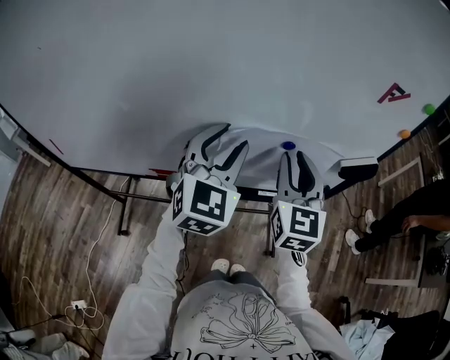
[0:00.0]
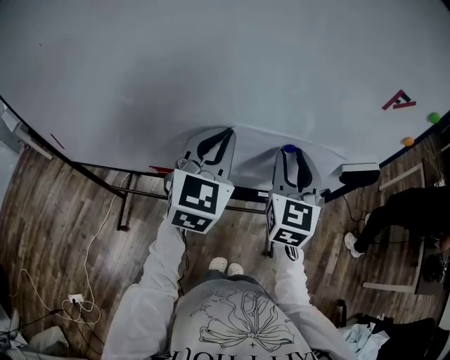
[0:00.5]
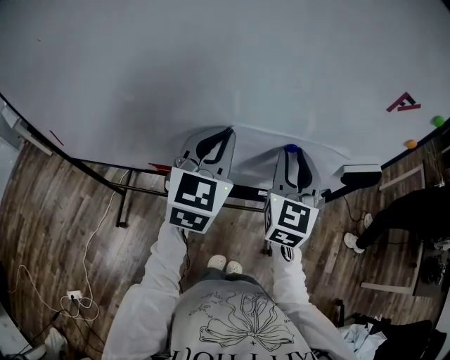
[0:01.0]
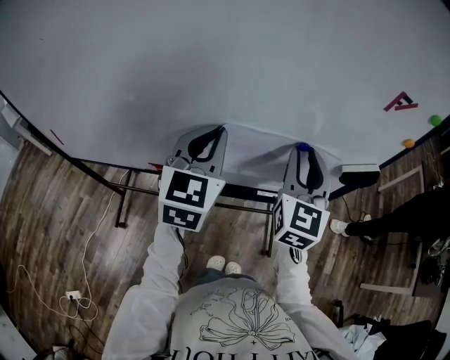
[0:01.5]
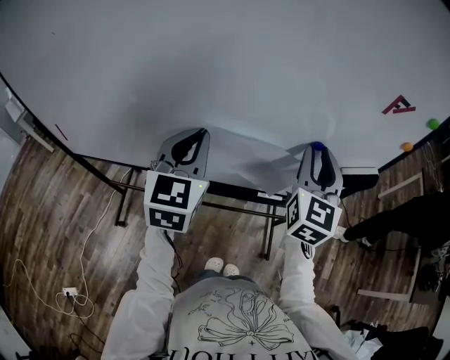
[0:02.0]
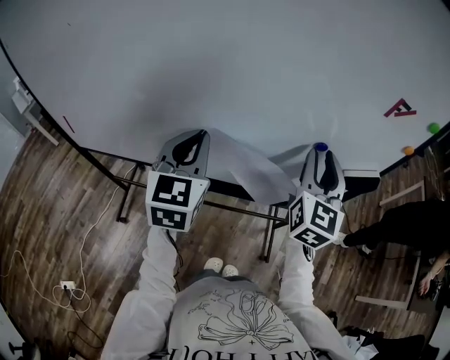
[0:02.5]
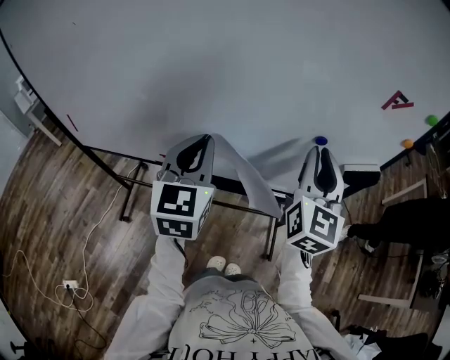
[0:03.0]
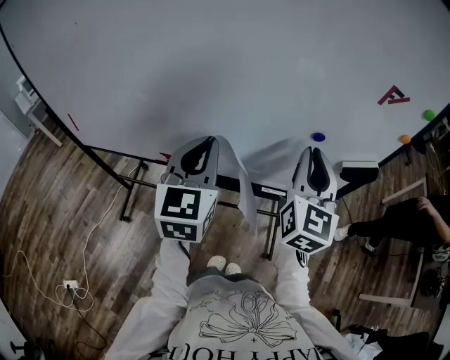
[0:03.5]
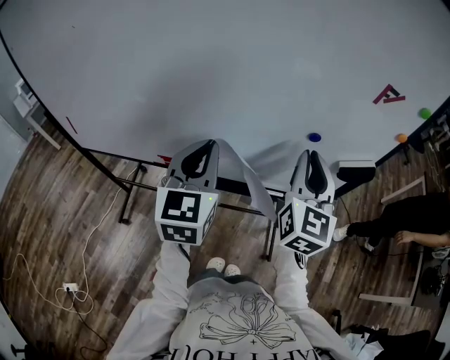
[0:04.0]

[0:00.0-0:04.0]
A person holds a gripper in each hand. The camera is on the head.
0:00.0 to 0:02.0: The right gripper moves some 5 cm; the left gripper heads to the left, covering roughly 5 cm, and closes.
0:02.0 to 0:04.0: The two grippers go about 5 cm backward.

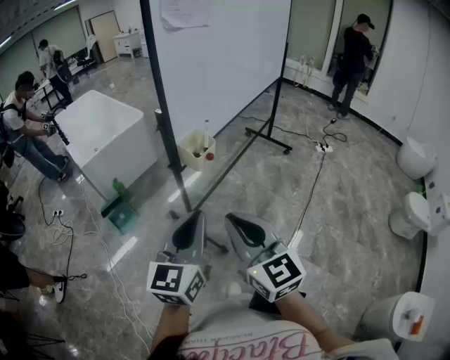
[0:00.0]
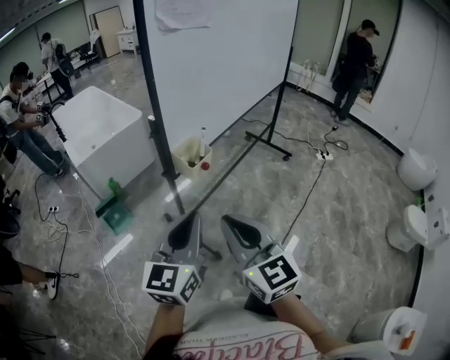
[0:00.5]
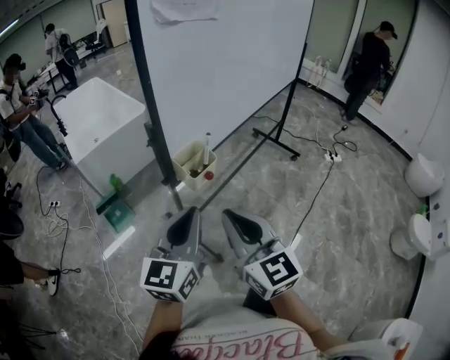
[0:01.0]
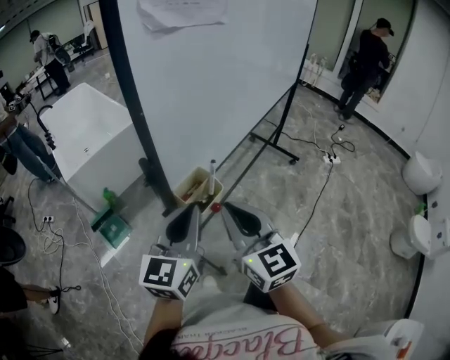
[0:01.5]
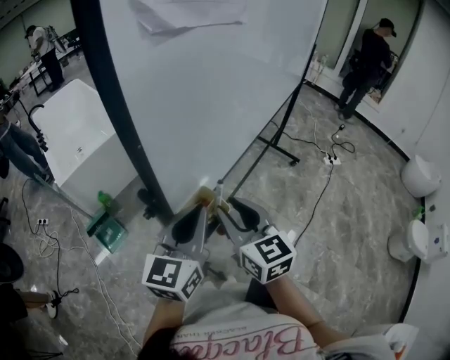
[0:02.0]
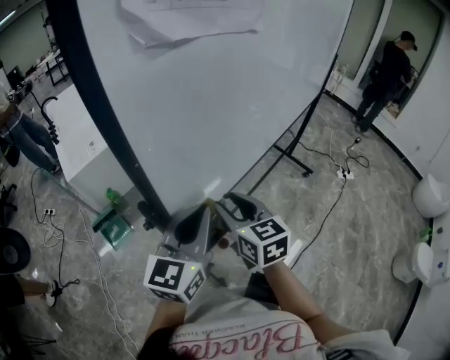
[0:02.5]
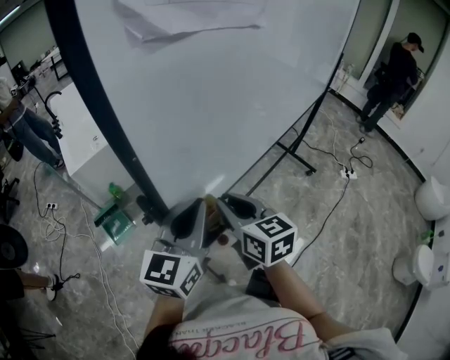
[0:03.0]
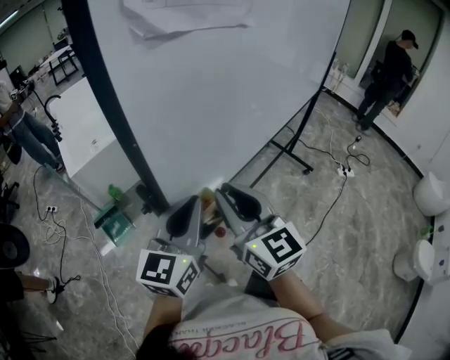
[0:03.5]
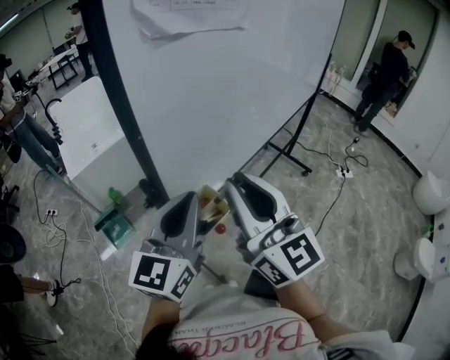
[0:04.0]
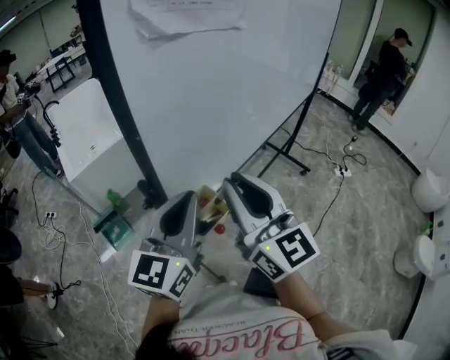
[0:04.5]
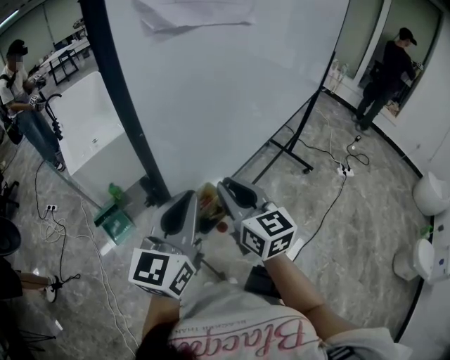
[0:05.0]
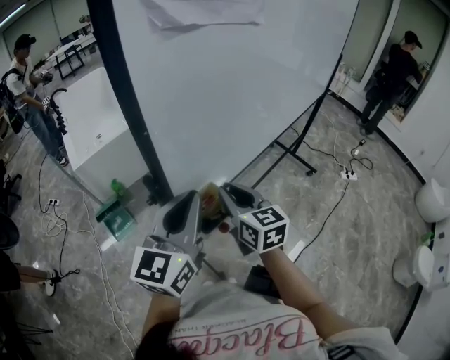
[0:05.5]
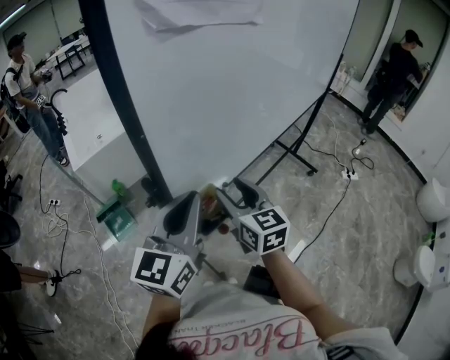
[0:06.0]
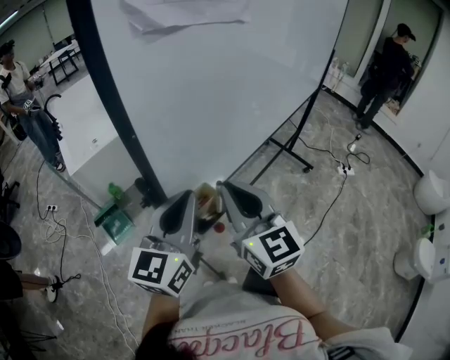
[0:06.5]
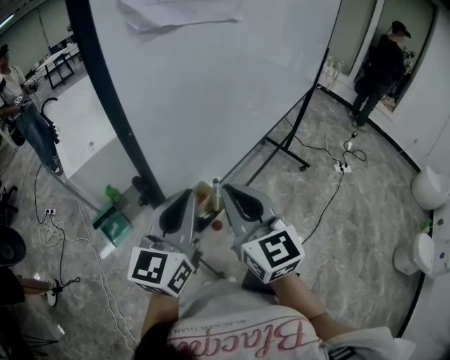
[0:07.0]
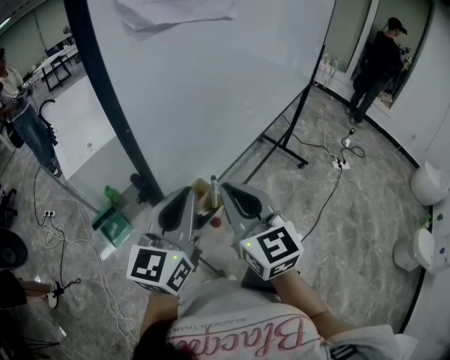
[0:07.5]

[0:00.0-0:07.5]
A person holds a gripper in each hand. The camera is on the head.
0:00.0 to 0:02.0: Both grippers move forward, some 25 cm. The right gripper opens up.
0:02.0 to 0:04.0: The right gripper moves upward, roughly 15 cm, and changes its angle by roughly 30 degrees, while the left gripper heads upward, covering roughly 5 cm.
0:04.0 to 0:05.5: The right gripper shifts some 20 cm downward and forward, and rotates about 30 degrees.
0:05.5 to 0:07.5: The right gripper goes some 10 cm upward and backward, and opens, then closes once more.

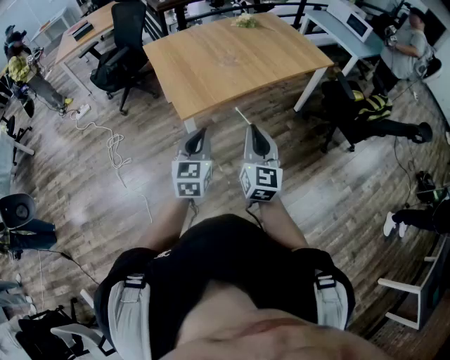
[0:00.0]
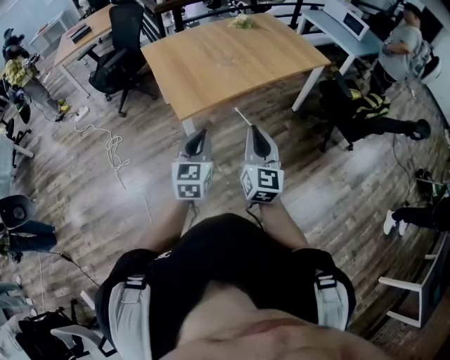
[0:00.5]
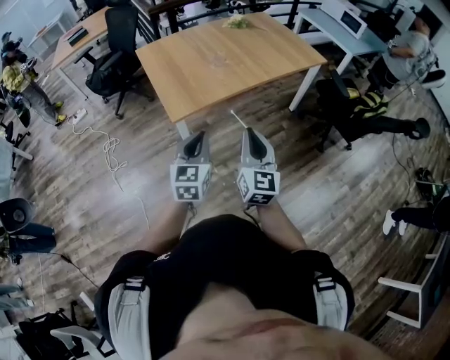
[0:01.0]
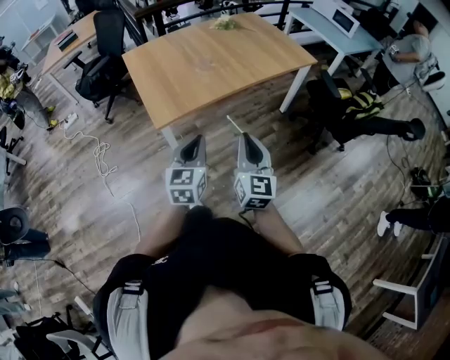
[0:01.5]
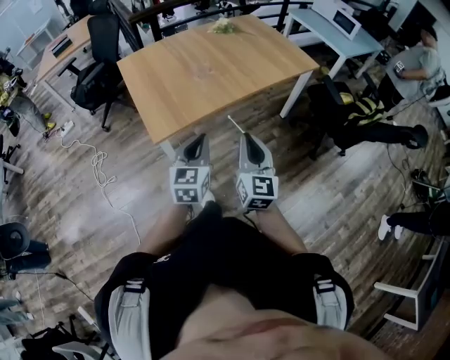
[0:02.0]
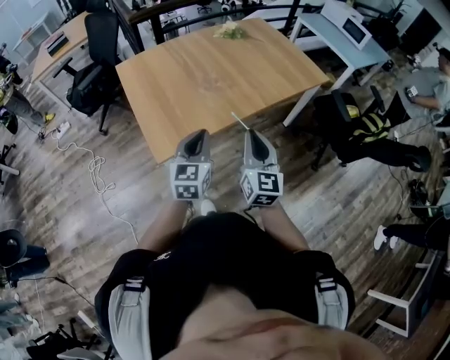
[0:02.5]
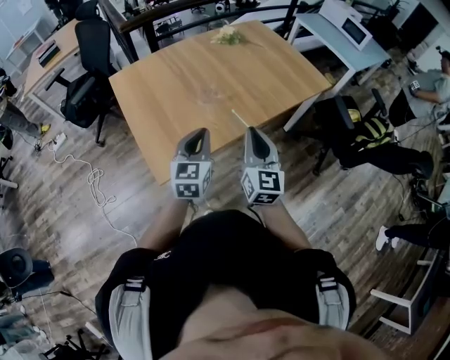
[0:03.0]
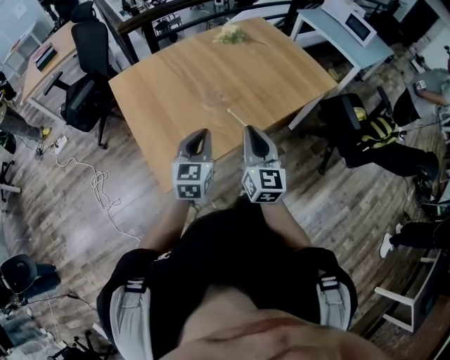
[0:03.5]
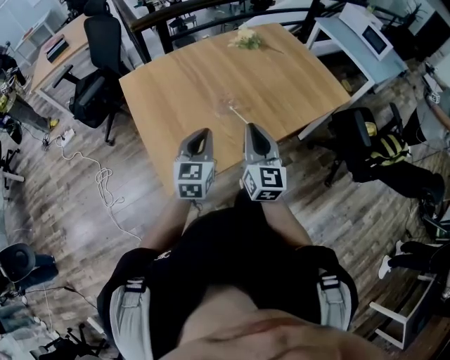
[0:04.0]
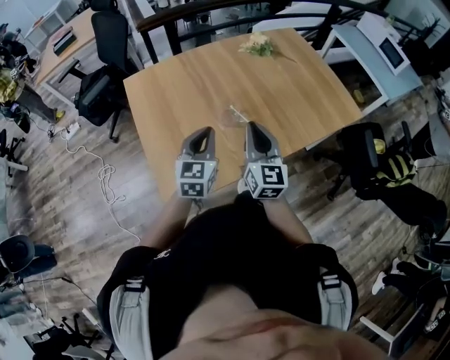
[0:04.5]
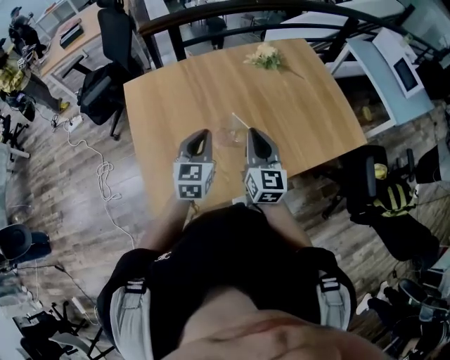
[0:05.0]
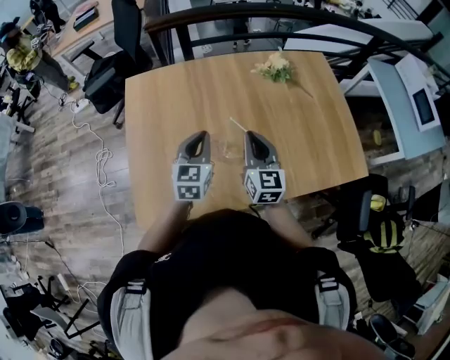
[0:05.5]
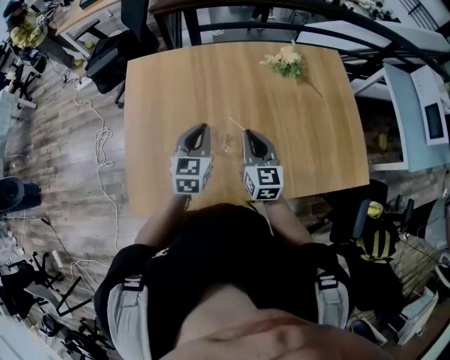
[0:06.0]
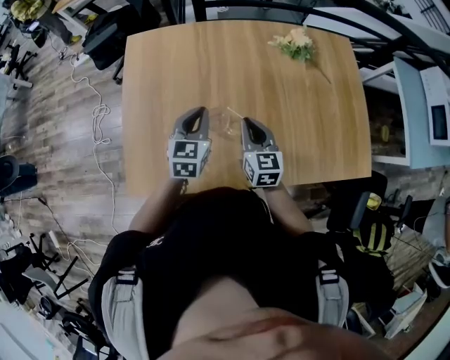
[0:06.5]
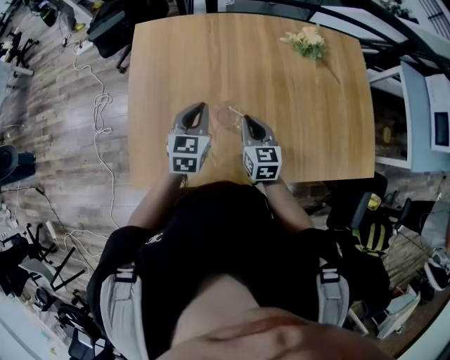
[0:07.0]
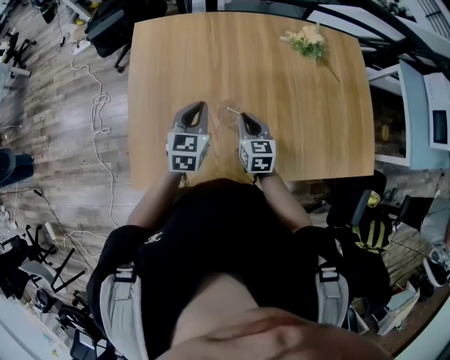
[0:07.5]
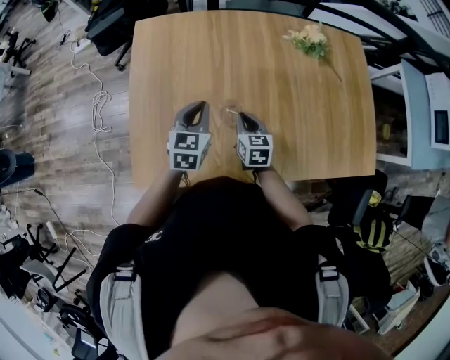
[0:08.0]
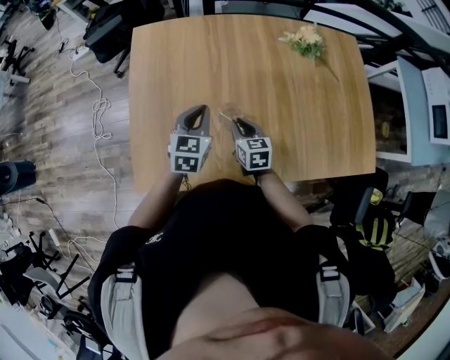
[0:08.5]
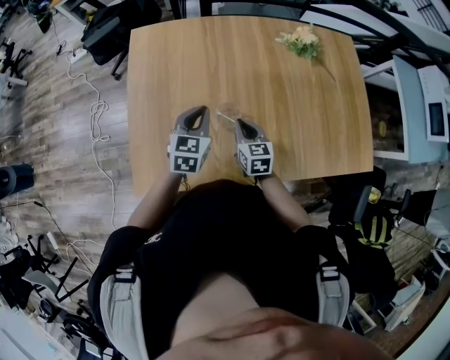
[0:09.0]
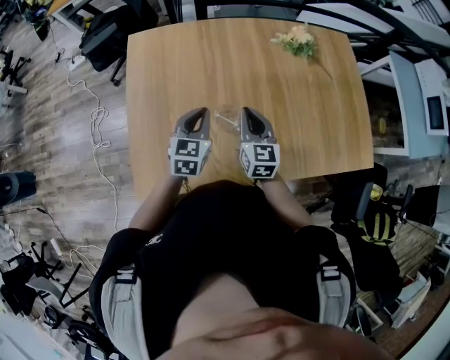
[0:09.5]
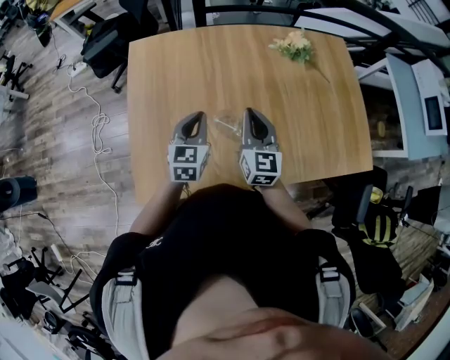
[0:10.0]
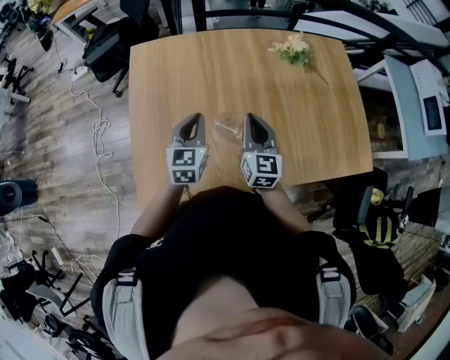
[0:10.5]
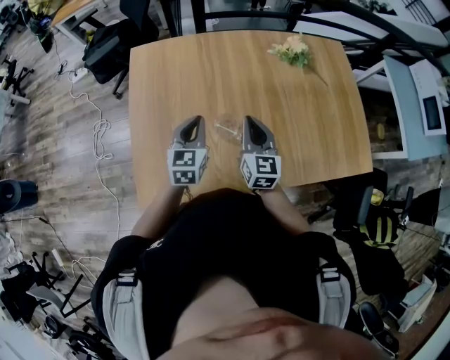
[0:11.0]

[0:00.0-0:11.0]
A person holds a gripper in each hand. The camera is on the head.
0:00.0 to 0:02.0: The grippers both shift forward and to the right by roughly 15 cm.
0:02.0 to 0:03.5: The grippers both shift forward by approximately 25 cm.
0:03.5 to 0:05.5: The two grippers go roughly 35 cm forward. The left gripper turns by some 20 degrees, while the right gripper swivels approximately 30 degrees.
0:05.5 to 0:07.5: The left gripper travels to the left and downward by approximately 10 cm; the right gripper is displaced downward and to the left by about 15 cm, and turns by some 20 degrees.
0:07.5 to 0:09.0: The grippers make only small movements.
0:09.0 to 0:11.0: The right gripper moves upward, approximately 10 cm, and rotates roughly 20 degrees.

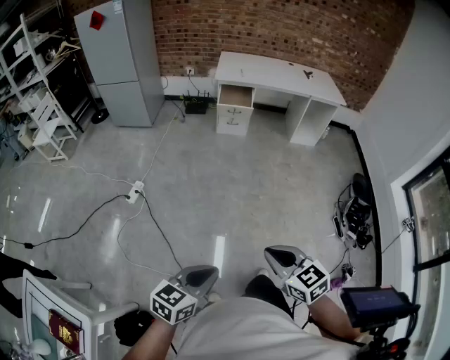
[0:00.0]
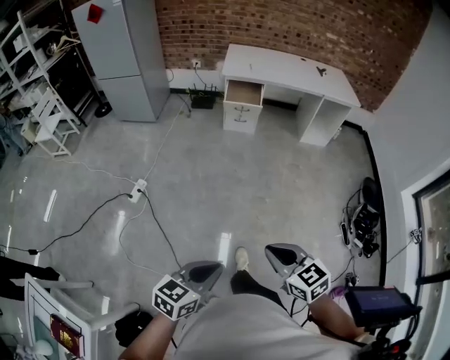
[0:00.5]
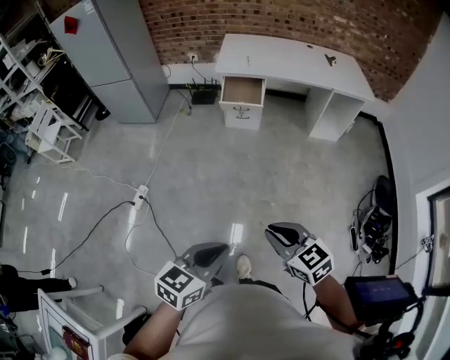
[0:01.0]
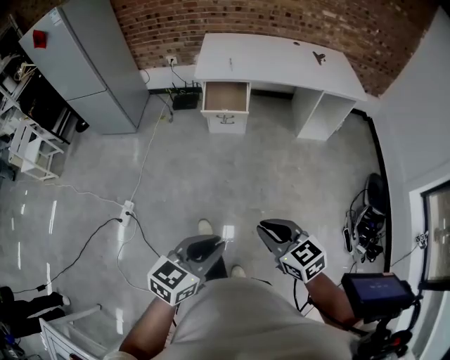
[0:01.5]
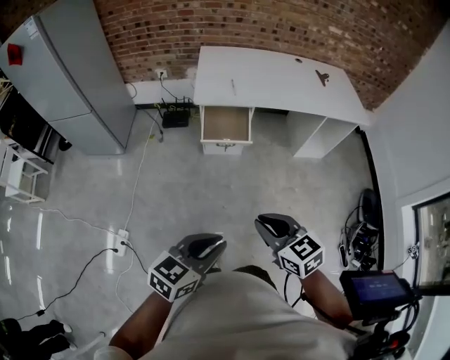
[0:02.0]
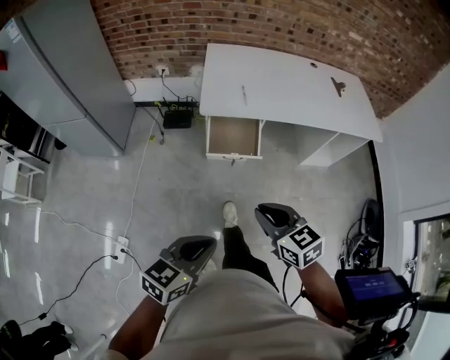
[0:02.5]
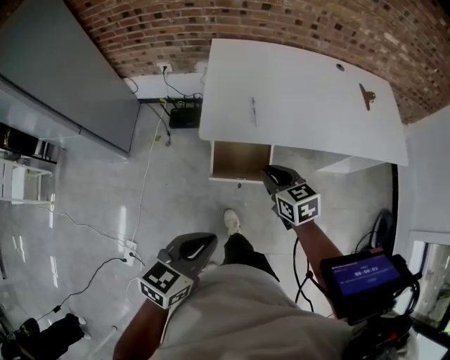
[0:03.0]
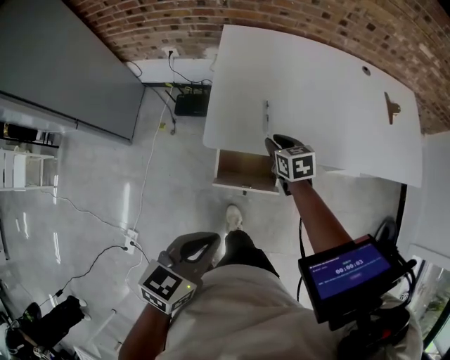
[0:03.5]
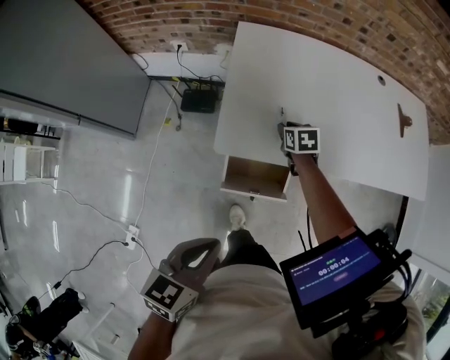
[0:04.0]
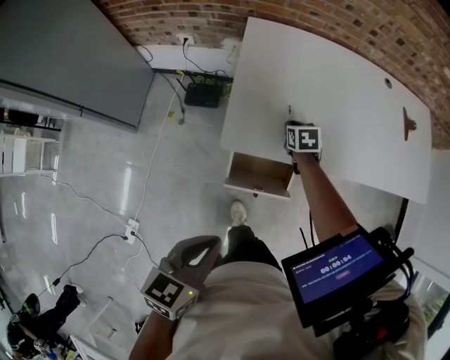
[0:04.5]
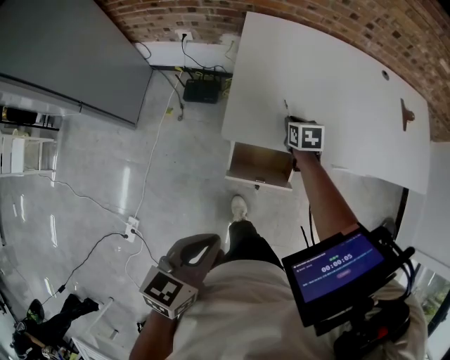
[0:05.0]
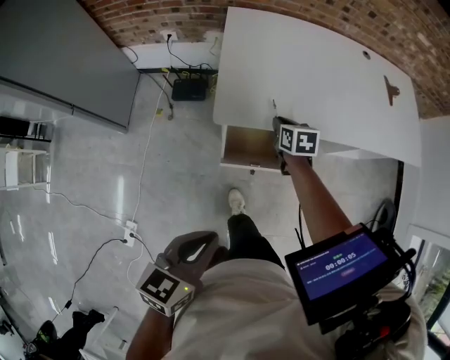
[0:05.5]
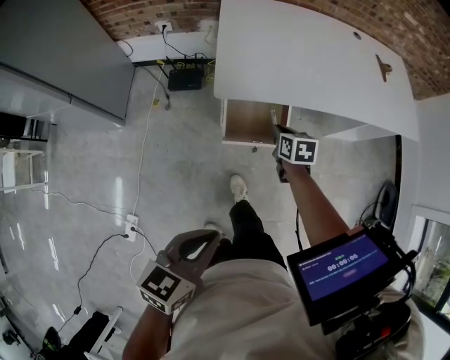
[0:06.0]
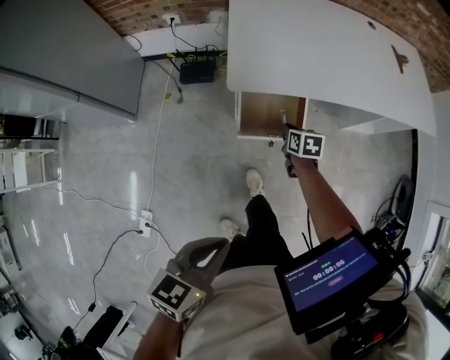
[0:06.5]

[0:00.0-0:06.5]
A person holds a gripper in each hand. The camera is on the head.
0:00.0 to 0:02.0: The two grippers travel together, forward, roughly 70 cm.
0:02.0 to 0:04.5: The pair of grippers is taken forward, roughly 60 cm. The left gripper changes its angle by approximately 30 degrees; the right gripper swivels about 30 degrees.
0:04.5 to 0:06.5: Both grippers move backward, approximately 20 cm. The right gripper changes its angle by approximately 20 degrees.
